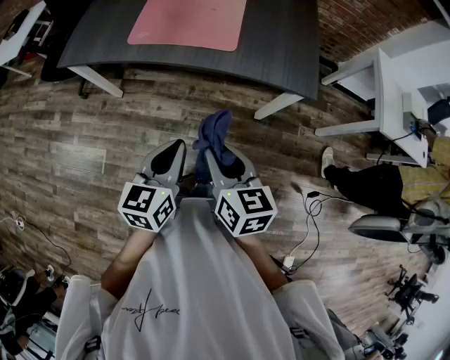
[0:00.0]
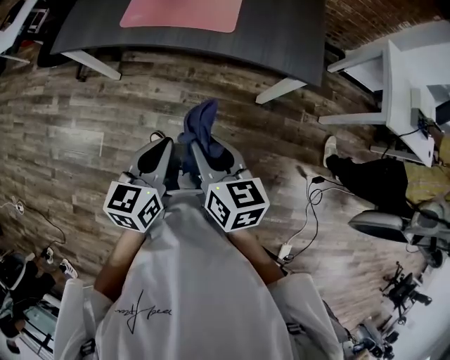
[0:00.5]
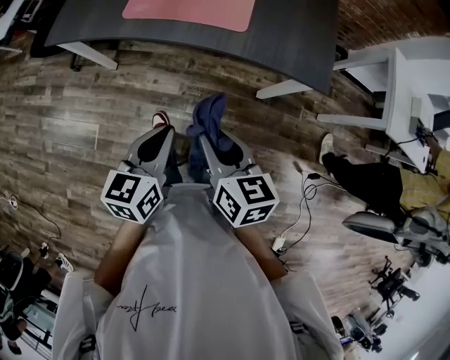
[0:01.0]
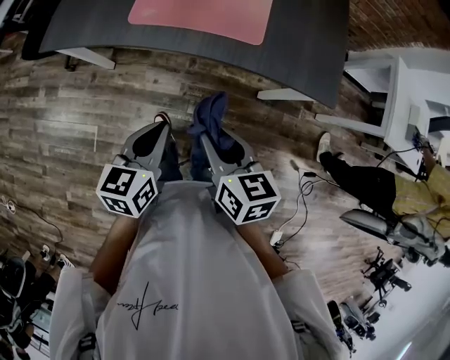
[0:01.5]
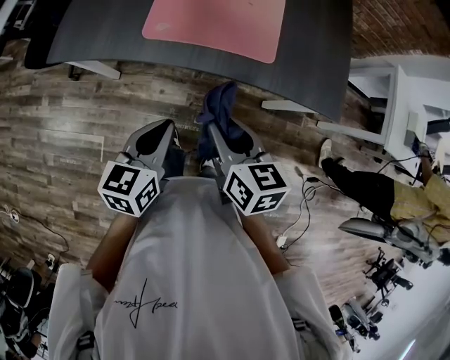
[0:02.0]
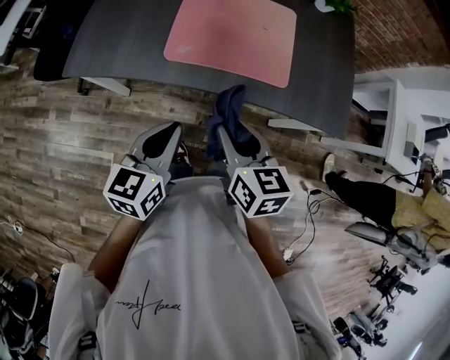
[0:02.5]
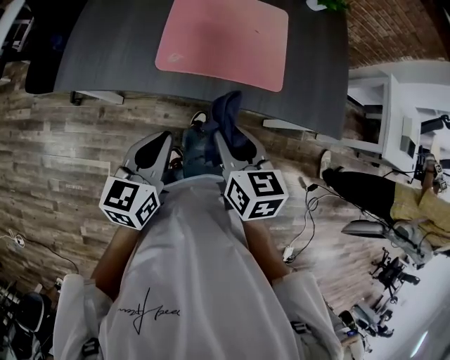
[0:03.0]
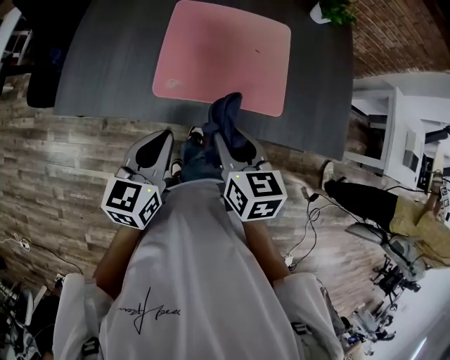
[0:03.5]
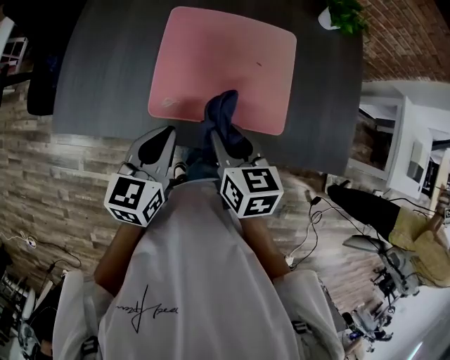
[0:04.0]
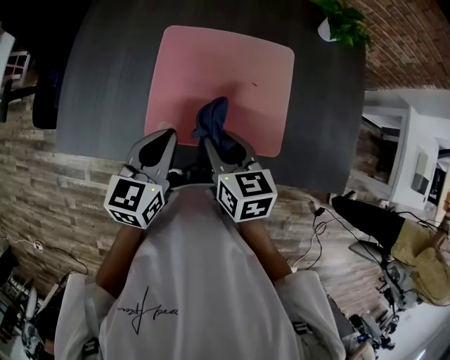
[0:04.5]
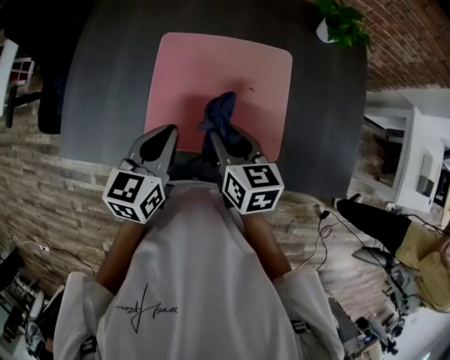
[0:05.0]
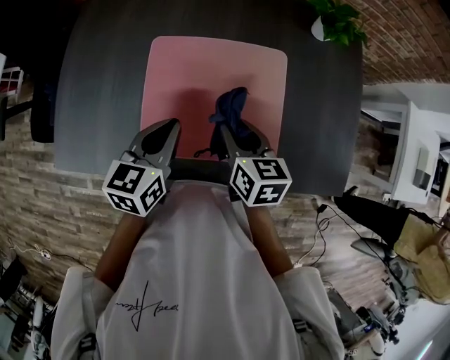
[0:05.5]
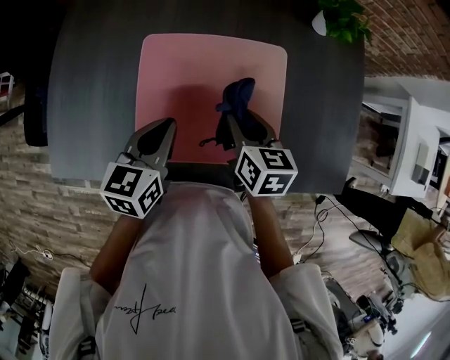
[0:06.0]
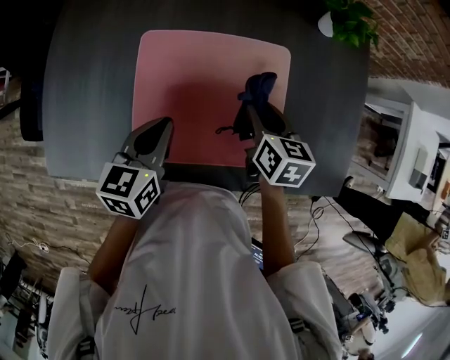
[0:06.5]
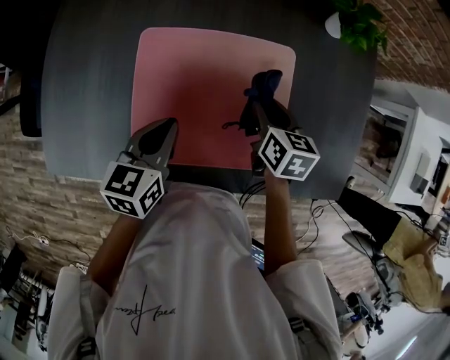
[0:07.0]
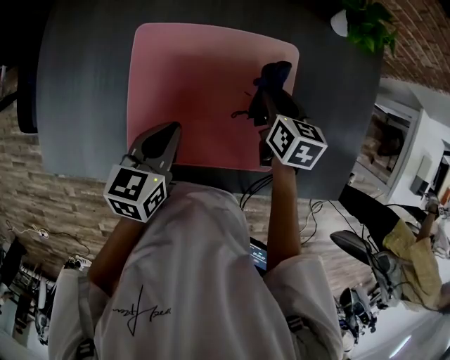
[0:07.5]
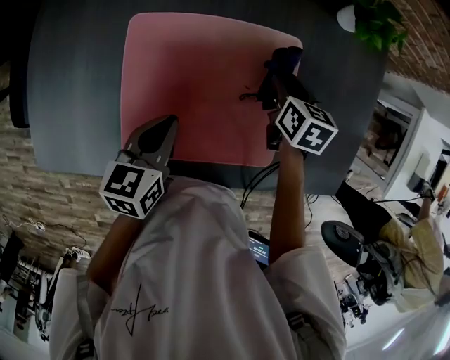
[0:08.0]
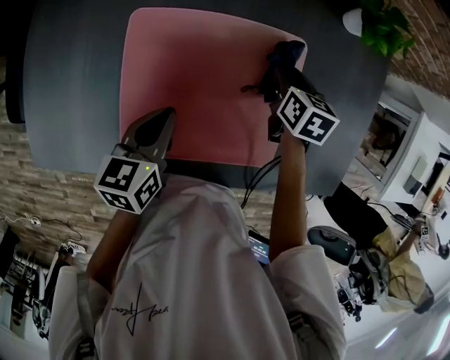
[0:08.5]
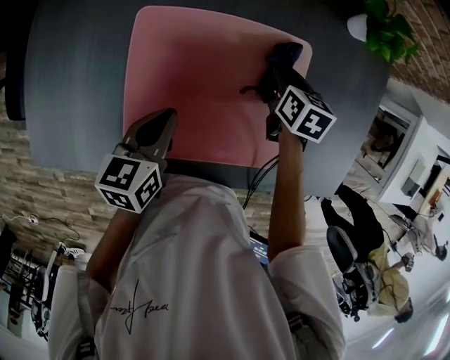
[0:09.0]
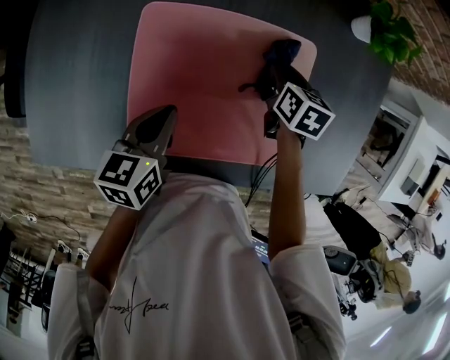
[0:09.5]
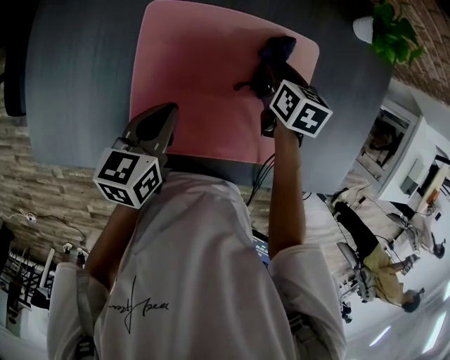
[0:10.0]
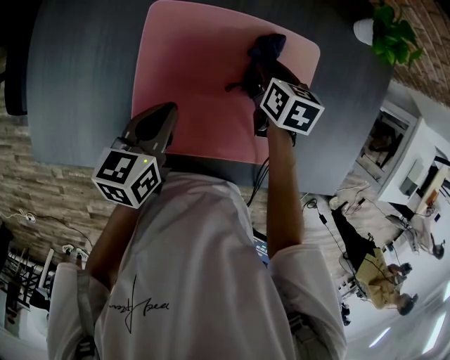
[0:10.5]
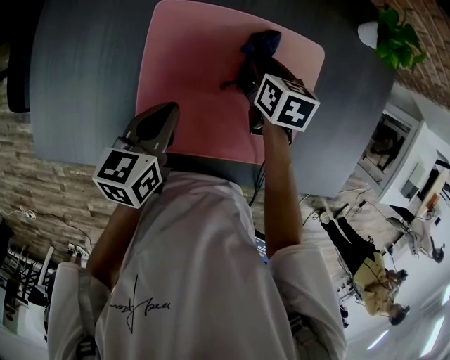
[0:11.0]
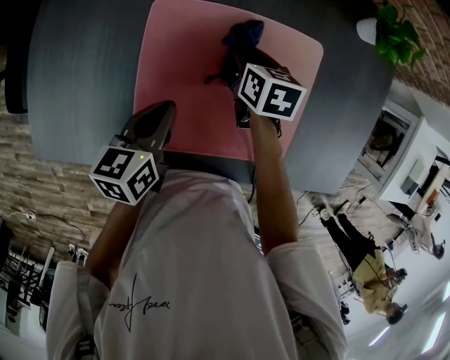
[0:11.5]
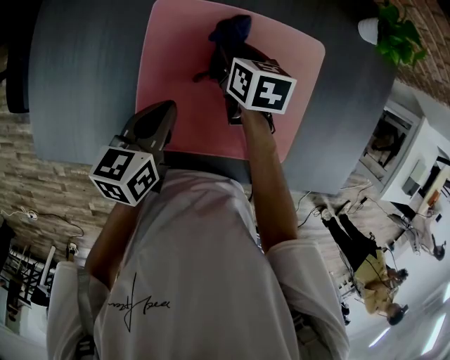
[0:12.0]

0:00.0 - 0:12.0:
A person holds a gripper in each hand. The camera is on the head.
0:00.0 - 0:02.0: The grippers both shift forward and to the left by about 20 cm.
0:02.0 - 0:04.0: Both grippers move forward, approximately 20 cm.
0:04.0 - 0:06.0: The right gripper heads forward and to the right, covering roughly 20 cm, while the left gripper shifts about 15 cm forward.
0:06.0 - 0:08.0: The left gripper shifts roughly 5 cm downward. Meanwhile the right gripper heads forward, to the right and downward, covering some 20 cm.
0:08.0 - 0:10.0: The right gripper shifts roughly 5 cm to the left.
0:10.0 - 0:12.0: The right gripper is displaced to the left by approximately 10 cm.

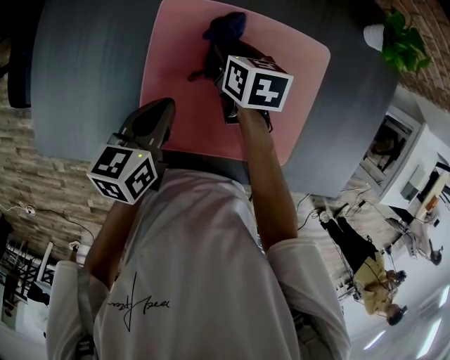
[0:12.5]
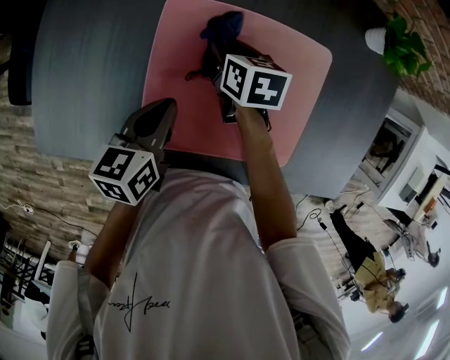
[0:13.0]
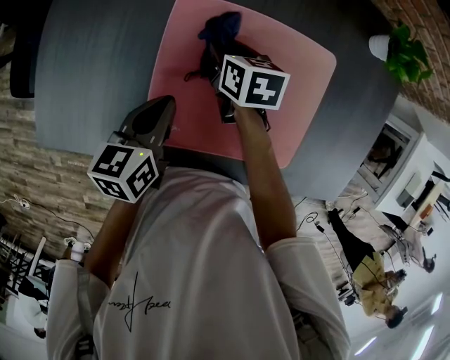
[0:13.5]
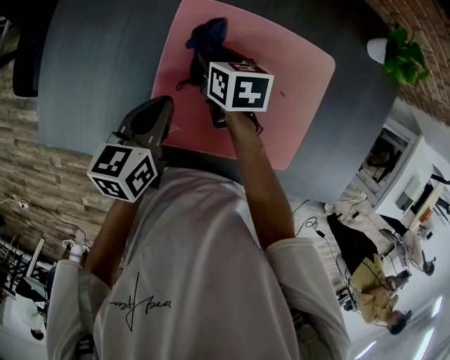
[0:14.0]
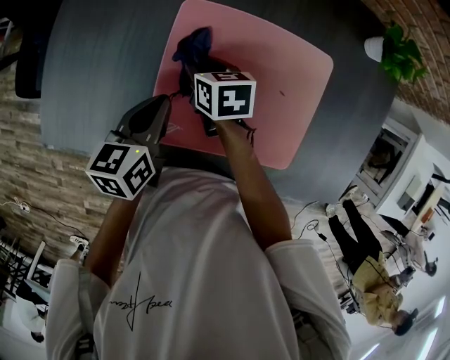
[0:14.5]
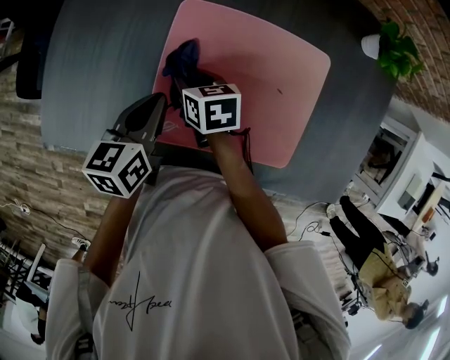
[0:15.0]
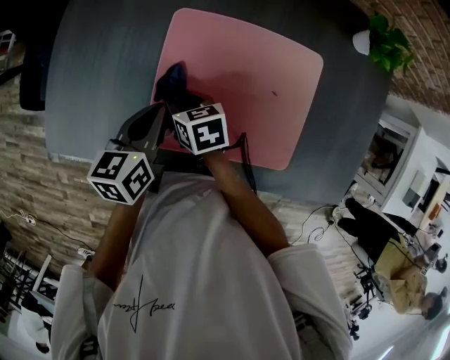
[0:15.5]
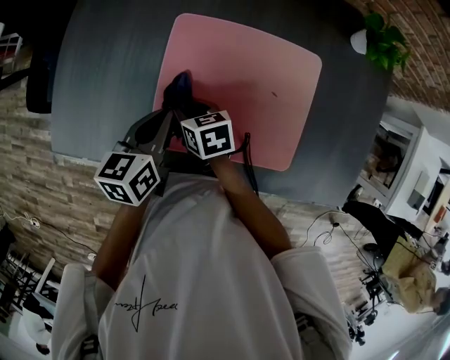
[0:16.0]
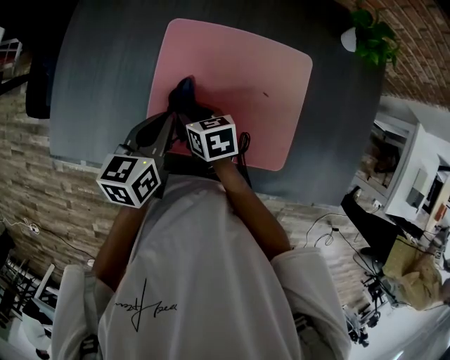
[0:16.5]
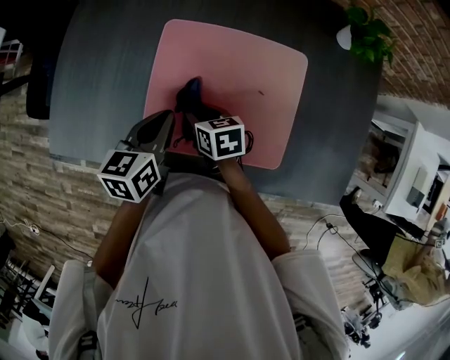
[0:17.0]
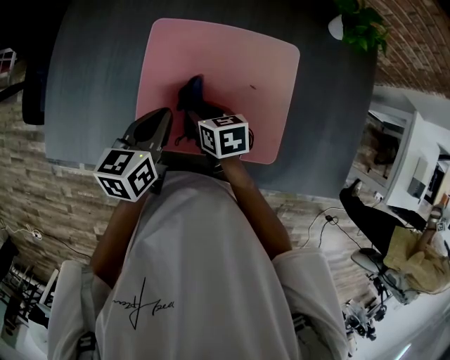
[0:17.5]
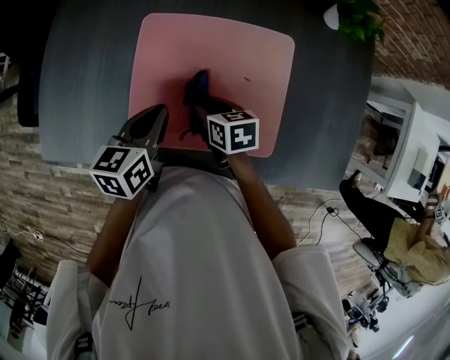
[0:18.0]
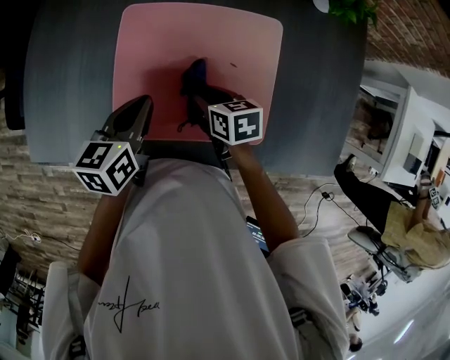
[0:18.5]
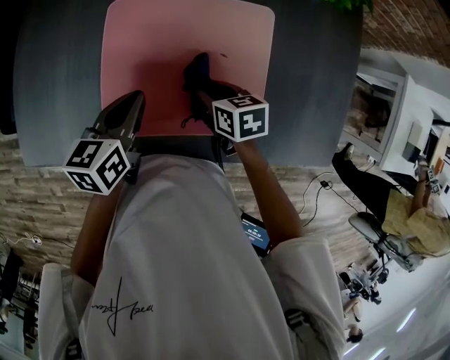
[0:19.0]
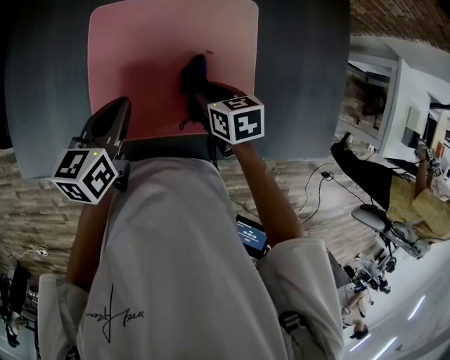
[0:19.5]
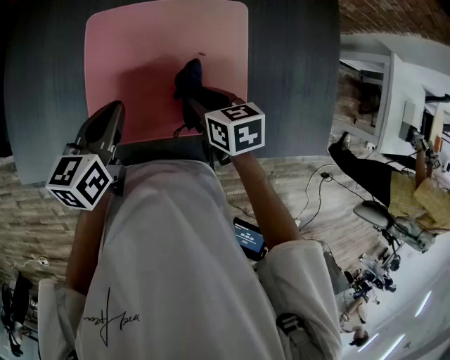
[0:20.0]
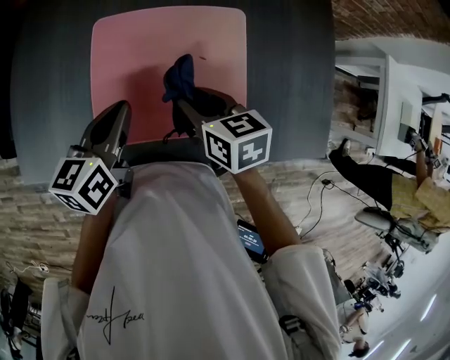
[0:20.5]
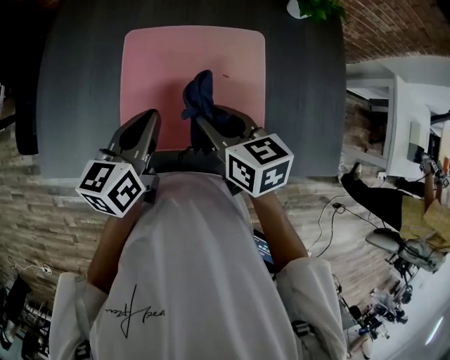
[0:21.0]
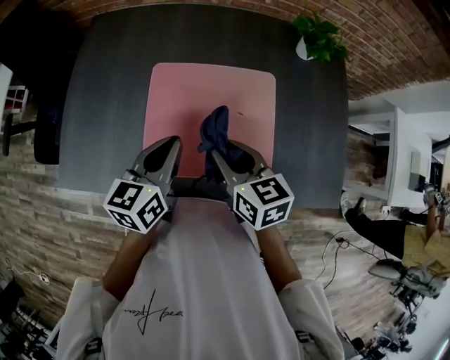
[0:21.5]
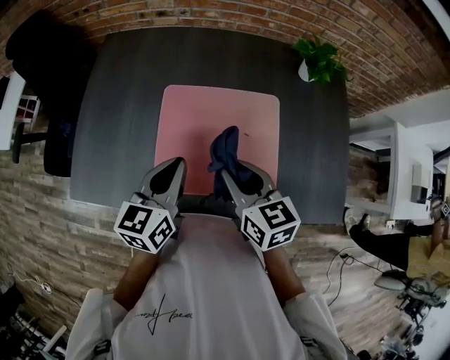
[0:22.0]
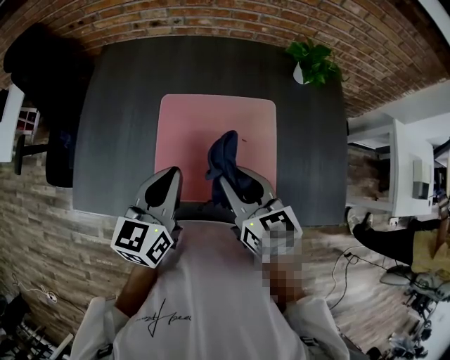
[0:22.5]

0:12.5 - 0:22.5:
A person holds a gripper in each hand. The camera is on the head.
0:12.5 - 0:14.5: The right gripper travels to the left by approximately 10 cm.
0:14.5 - 0:16.5: The right gripper travels backward by about 10 cm; the left gripper ends up some 5 cm from where it was.
0:16.5 - 0:18.5: The right gripper shifts about 15 cm to the right.
0:18.5 - 0:20.5: The left gripper goes some 5 cm upward, while the right gripper shifts about 10 cm upward.
0:20.5 - 0:22.5: The two grippers go roughly 10 cm upward. The right gripper changes its angle by roughly 20 degrees.

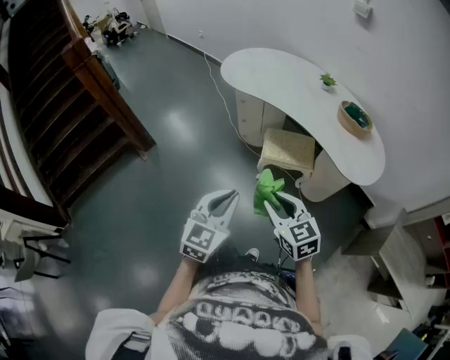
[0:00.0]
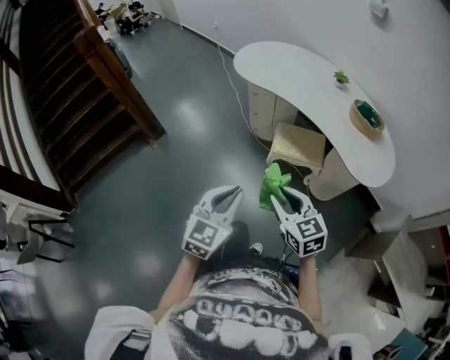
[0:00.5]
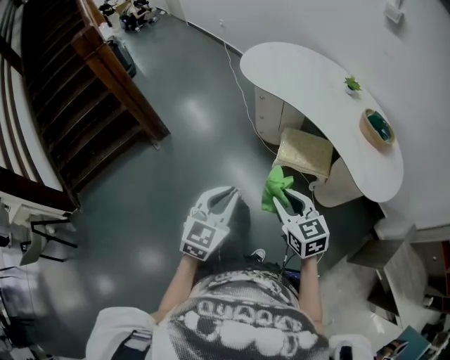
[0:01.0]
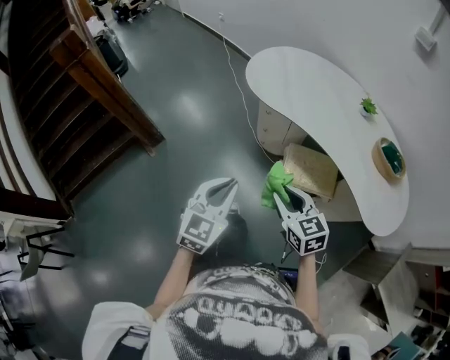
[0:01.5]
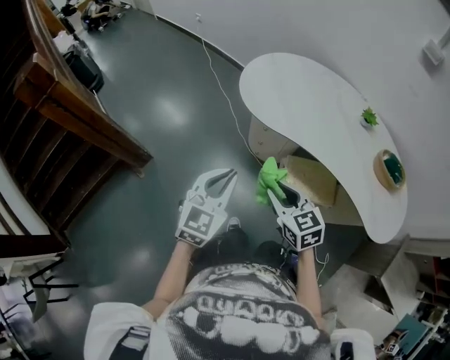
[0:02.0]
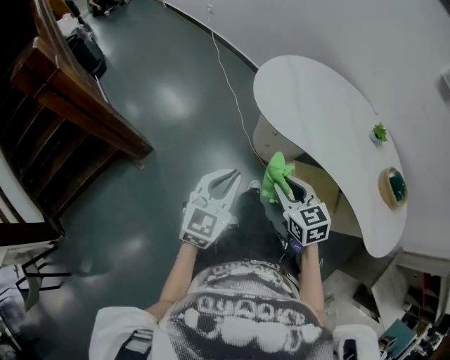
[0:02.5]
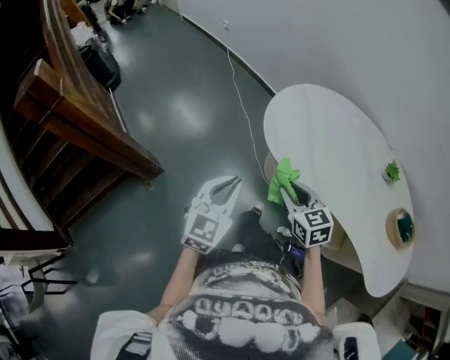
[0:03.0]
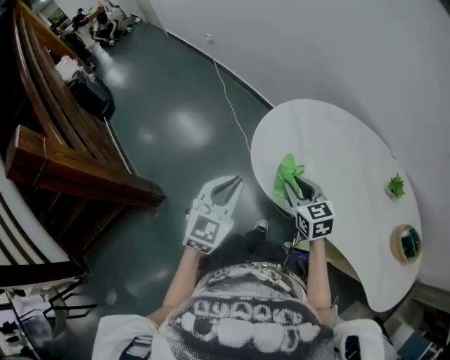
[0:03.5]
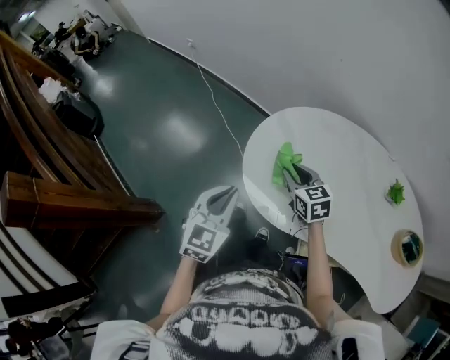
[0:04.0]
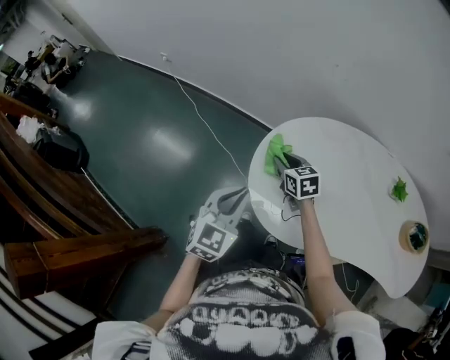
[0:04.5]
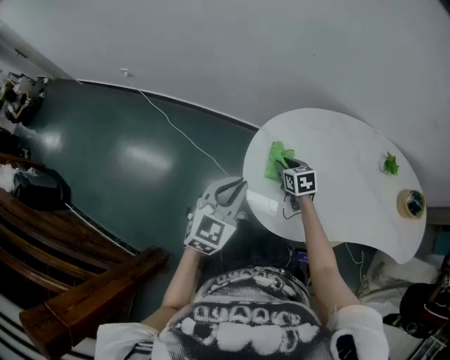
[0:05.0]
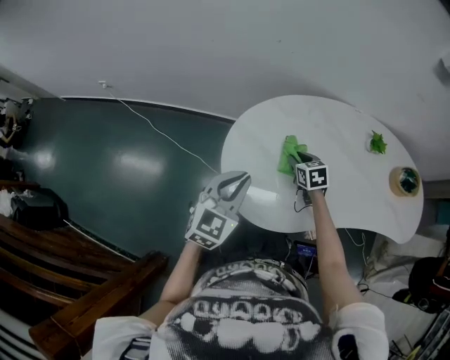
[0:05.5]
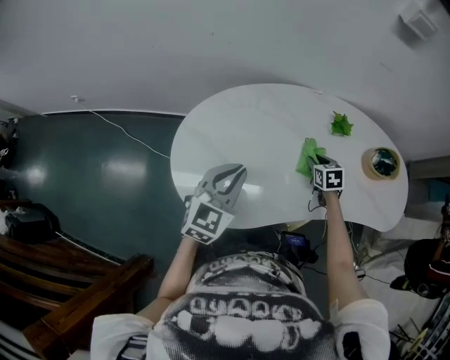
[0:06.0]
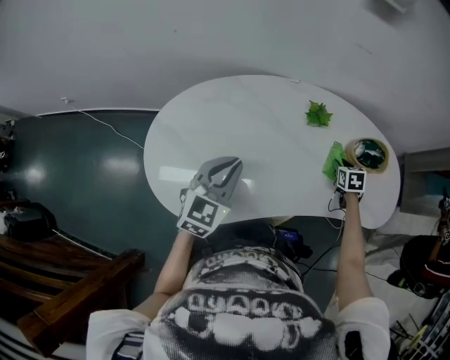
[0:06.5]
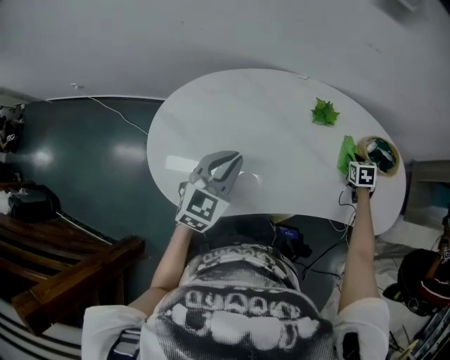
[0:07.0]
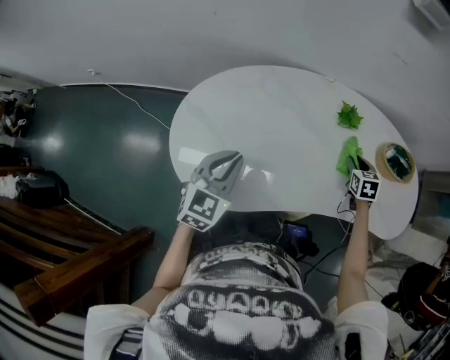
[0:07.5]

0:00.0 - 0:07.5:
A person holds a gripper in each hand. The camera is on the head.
0:00.0 - 0:02.0: The two grippers travel together, forward, approximately 40 cm.
0:02.0 - 0:04.0: Both grippers are carried forward, roughly 50 cm.
0:04.0 - 0:05.5: The right gripper moves roughly 15 cm, and rotates approximately 40 degrees. The left gripper moves some 15 cm, and changes its angle by roughly 40 degrees.
0:05.5 - 0:07.5: The right gripper travels to the right by some 40 cm; the left gripper is displaced to the right by about 20 cm.
